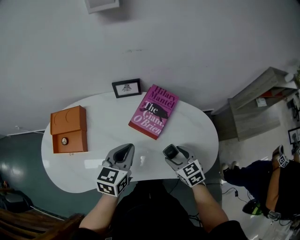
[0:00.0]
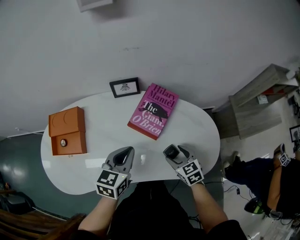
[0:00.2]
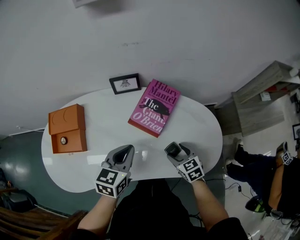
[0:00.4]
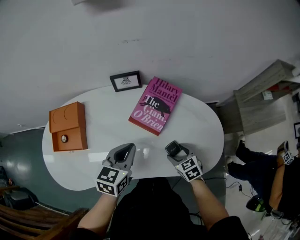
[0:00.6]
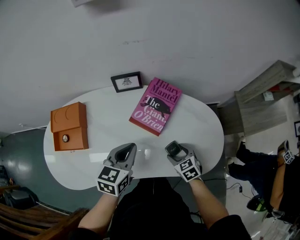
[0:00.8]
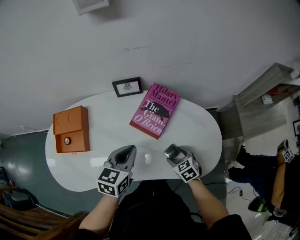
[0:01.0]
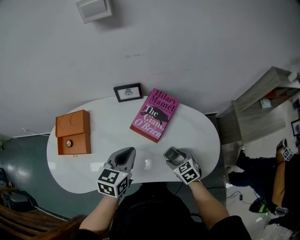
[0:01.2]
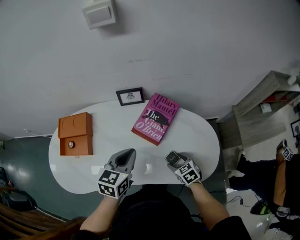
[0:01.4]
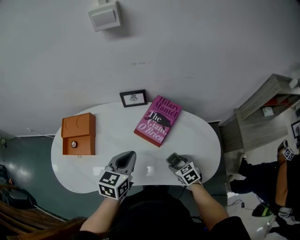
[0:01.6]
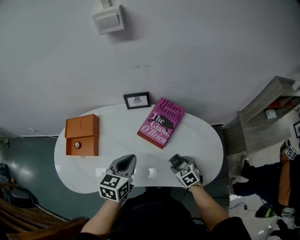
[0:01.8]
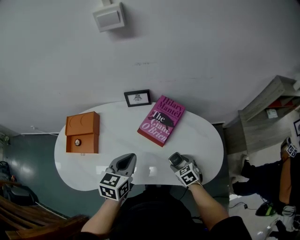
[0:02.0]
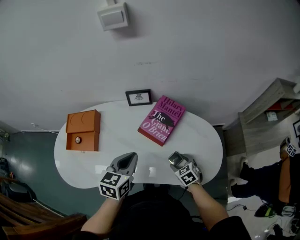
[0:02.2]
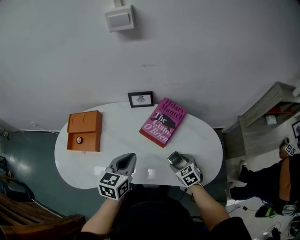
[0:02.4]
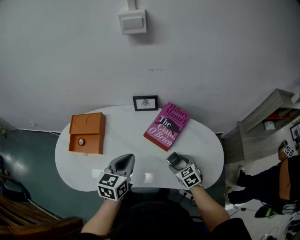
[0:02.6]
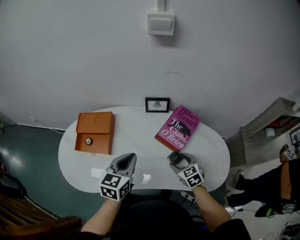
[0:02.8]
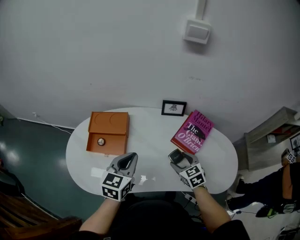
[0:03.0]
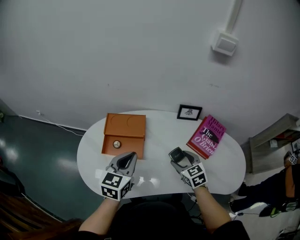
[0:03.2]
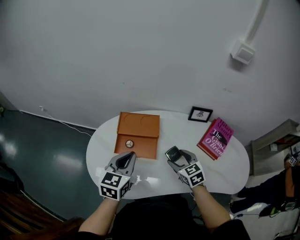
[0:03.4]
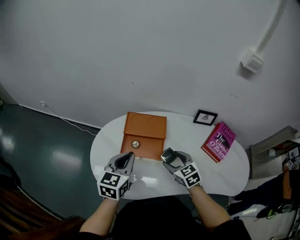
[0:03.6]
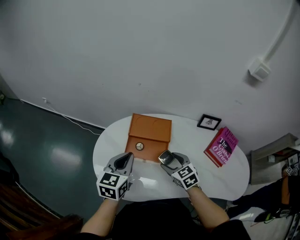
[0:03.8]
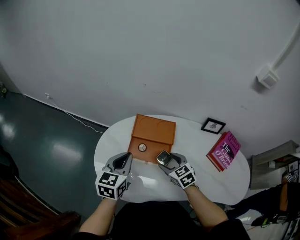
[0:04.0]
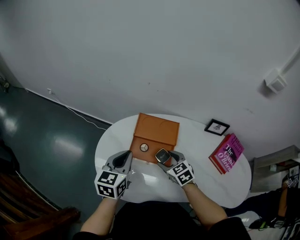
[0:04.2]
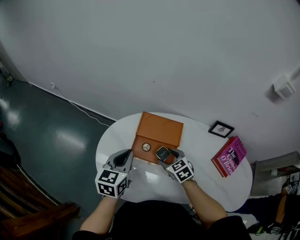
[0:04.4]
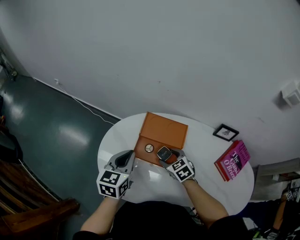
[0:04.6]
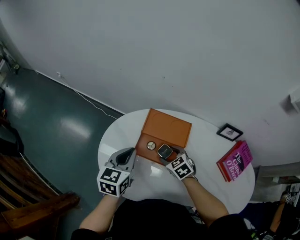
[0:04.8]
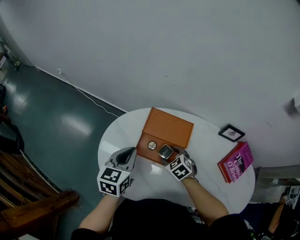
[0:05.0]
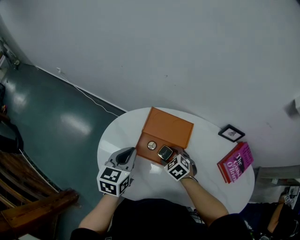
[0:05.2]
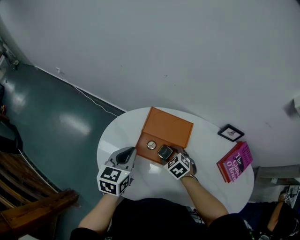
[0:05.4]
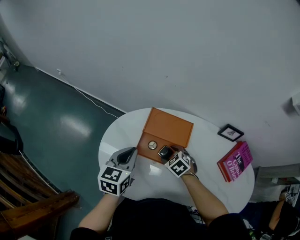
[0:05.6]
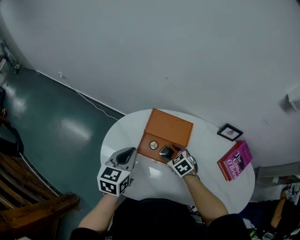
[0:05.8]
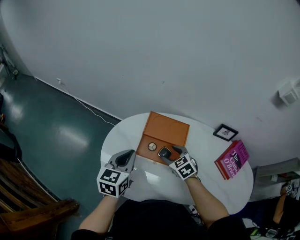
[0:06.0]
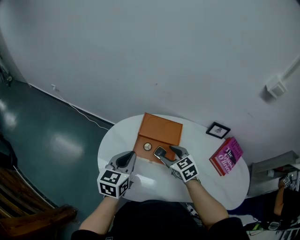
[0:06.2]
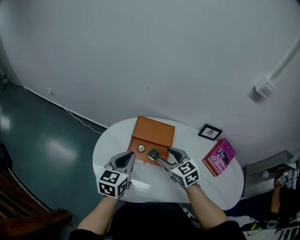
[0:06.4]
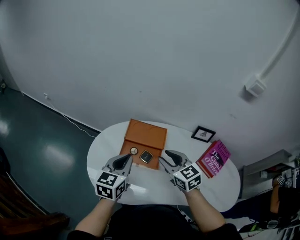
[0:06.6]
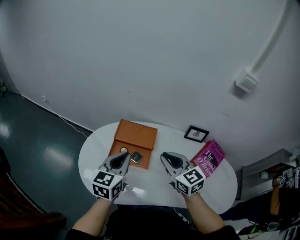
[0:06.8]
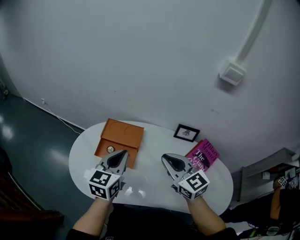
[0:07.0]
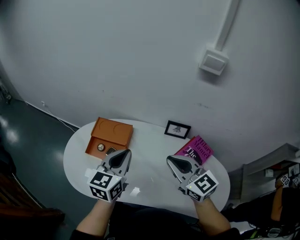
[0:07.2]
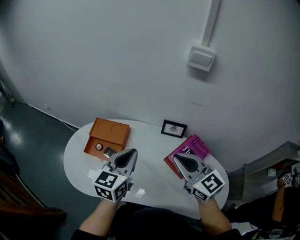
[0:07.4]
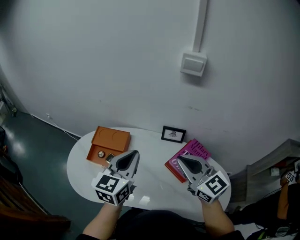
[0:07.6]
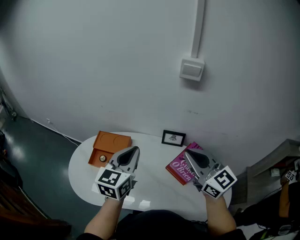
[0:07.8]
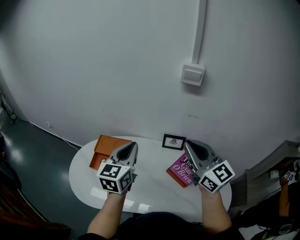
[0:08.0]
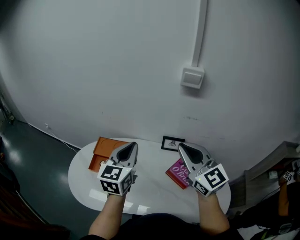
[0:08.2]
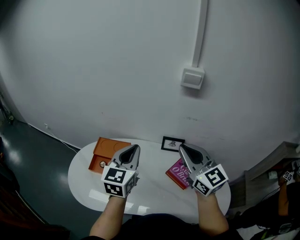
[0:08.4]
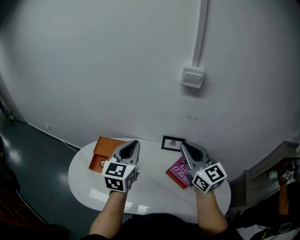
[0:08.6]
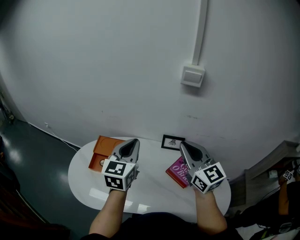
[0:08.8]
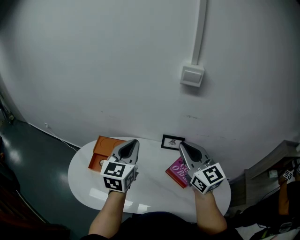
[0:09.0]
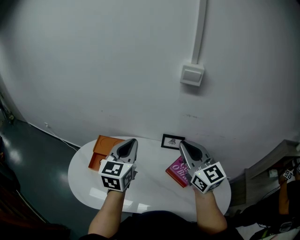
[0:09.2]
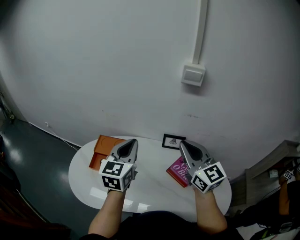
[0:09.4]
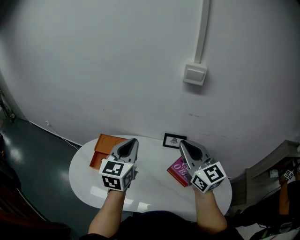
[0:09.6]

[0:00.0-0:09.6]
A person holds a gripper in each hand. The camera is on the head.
0:00.0 to 0:01.6: The right gripper goes approximately 10 cm downward.
0:01.6 to 0:03.2: The right gripper moves to the left and upward, roughly 30 cm. Meanwhile the left gripper moves to the left, approximately 30 cm.
0:03.2 to 0:04.8: Both grippers travel together to the left and forward, roughly 25 cm. The right gripper swivels roughly 30 degrees; the left gripper turns by some 20 degrees.
0:04.8 to 0:06.4: The right gripper heads upward, covering about 15 cm, and swivels approximately 20 degrees. Meanwhile the left gripper goes some 5 cm backward.
0:06.4 to 0:08.0: The grippers both shift to the right and upward by roughly 40 cm. The right gripper tips its fingers upward by about 40 degrees, and closes.
0:08.0 to 0:09.6: There are only small adjustments of the grippers.

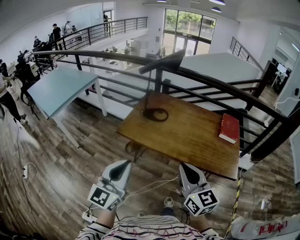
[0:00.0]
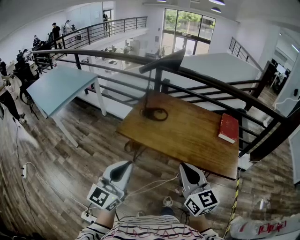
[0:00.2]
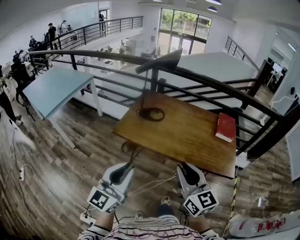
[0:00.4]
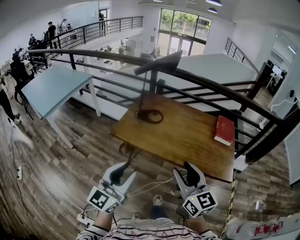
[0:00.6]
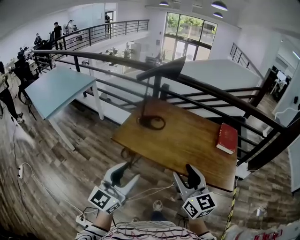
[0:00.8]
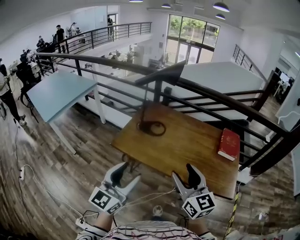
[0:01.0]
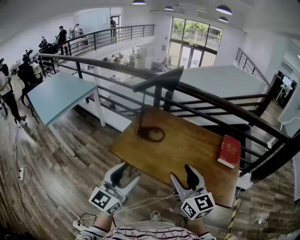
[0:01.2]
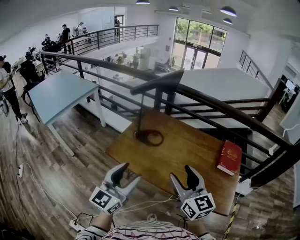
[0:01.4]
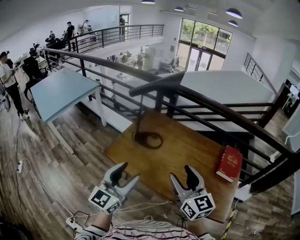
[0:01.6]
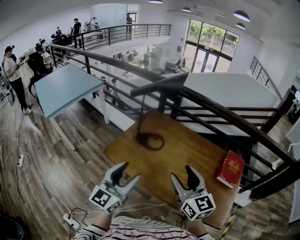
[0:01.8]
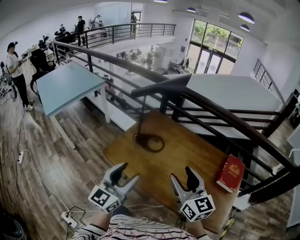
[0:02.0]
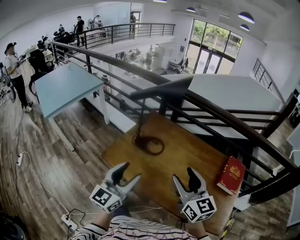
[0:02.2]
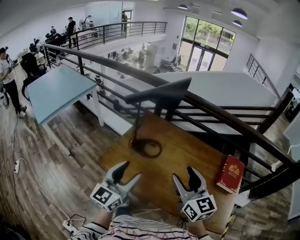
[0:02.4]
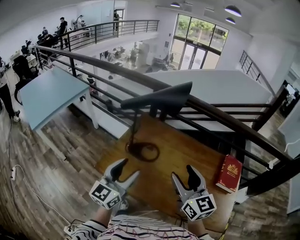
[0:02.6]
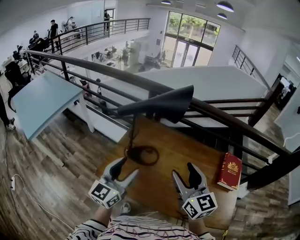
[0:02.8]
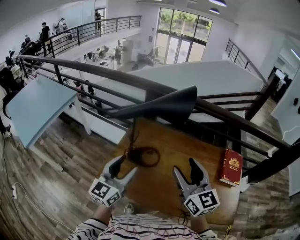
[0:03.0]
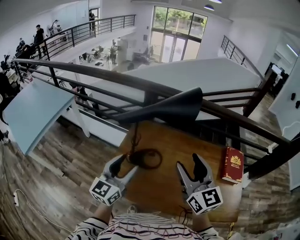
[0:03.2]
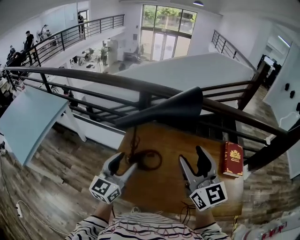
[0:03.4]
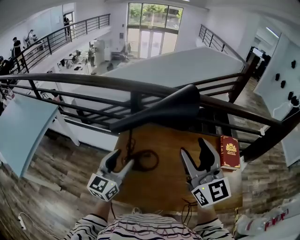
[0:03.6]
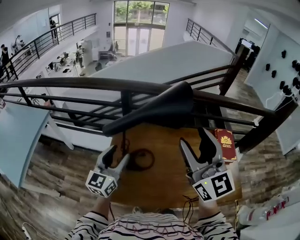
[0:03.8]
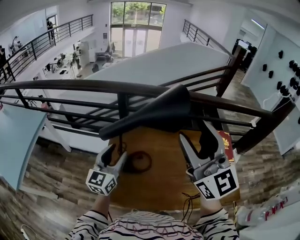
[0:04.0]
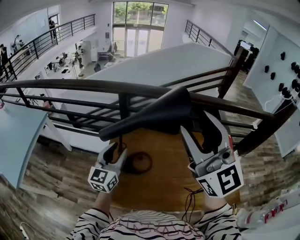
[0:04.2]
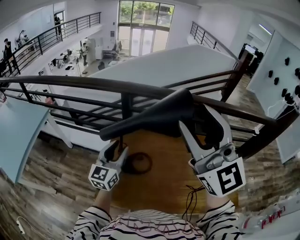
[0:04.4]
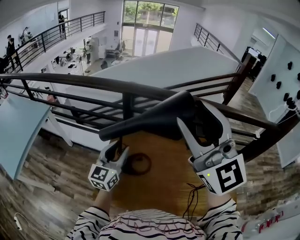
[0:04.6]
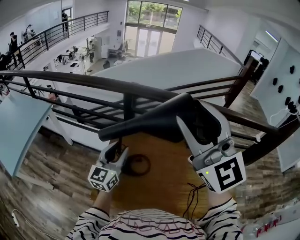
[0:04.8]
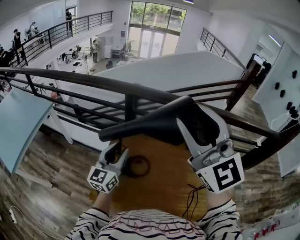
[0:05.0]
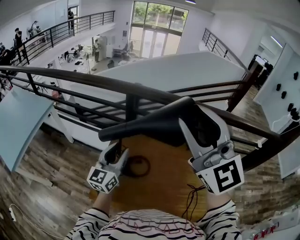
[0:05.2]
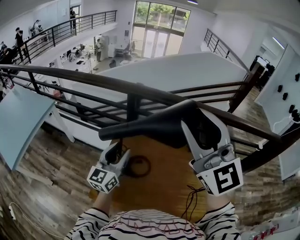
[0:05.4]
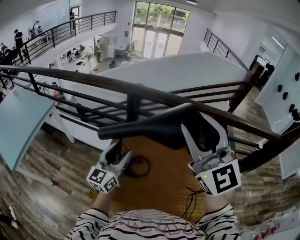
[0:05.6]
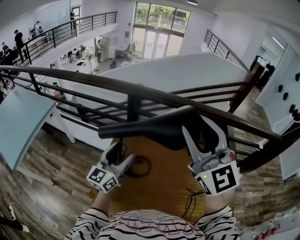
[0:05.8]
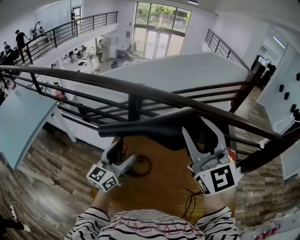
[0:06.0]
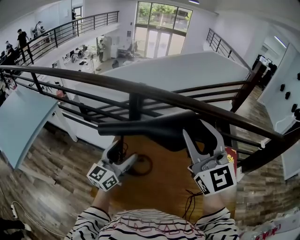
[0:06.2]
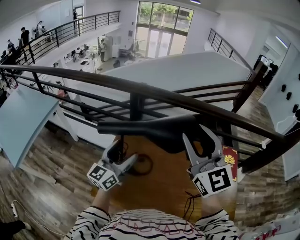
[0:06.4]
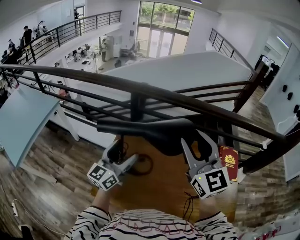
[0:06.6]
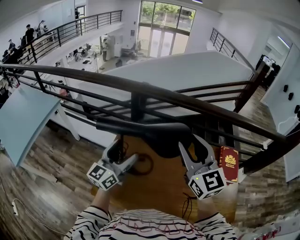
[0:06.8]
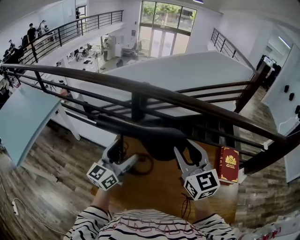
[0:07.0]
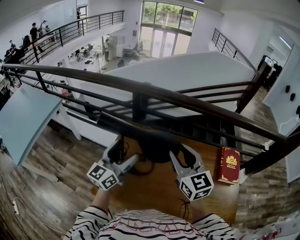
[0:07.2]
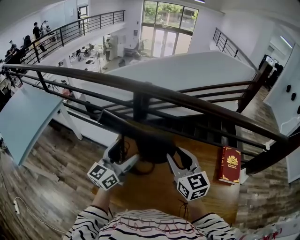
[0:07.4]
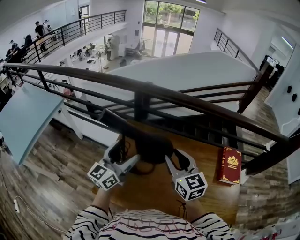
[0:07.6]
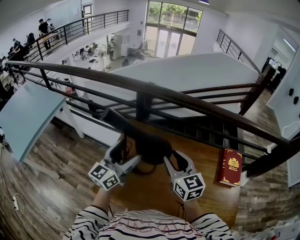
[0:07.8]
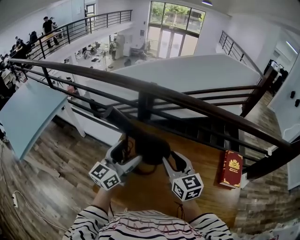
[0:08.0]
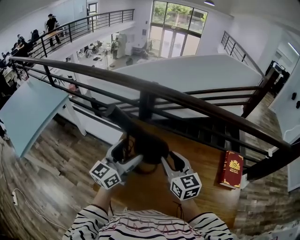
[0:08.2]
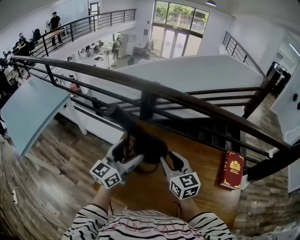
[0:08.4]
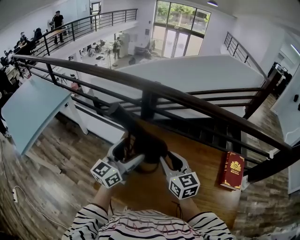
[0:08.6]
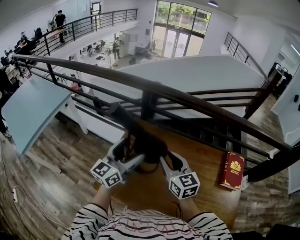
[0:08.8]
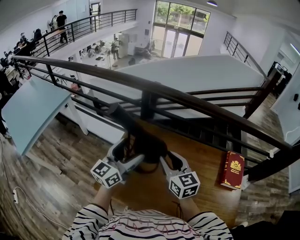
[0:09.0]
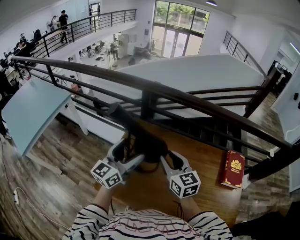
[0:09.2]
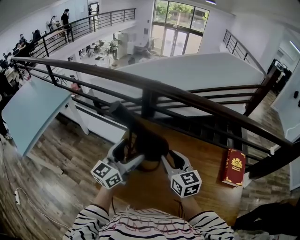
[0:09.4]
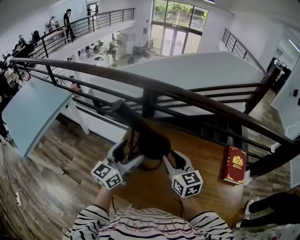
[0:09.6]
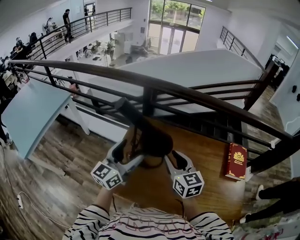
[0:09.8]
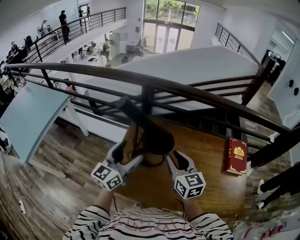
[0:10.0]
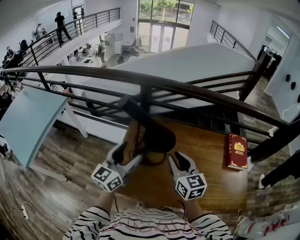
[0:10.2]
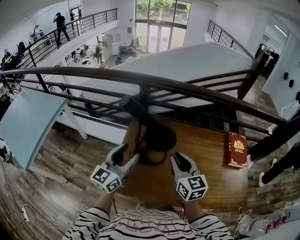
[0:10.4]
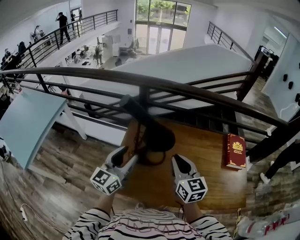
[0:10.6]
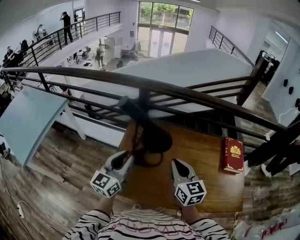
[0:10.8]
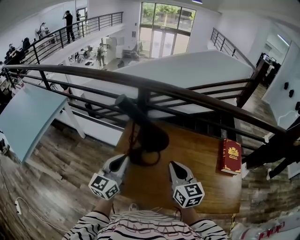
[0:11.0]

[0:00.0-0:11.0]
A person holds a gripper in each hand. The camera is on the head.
0:00.0 to 0:01.6: The right gripper goes approximately 25 cm forward, and opens up. The left gripper moves forward and to the right, about 25 cm, and opens up.
0:01.6 to 0:03.2: Both grippers move forward, roughly 25 cm.
0:03.2 to 0:04.8: The right gripper travels upward and forward by approximately 20 cm, and rotates some 30 degrees. The left gripper goes approximately 15 cm forward.
0:04.8 to 0:06.2: The right gripper goes some 5 cm downward; the left gripper opens up.
0:06.2 to 0:07.8: The right gripper travels downward by roughly 20 cm, and swivels about 30 degrees.
0:07.8 to 0:09.4: There are only small adjustments of the grippers.
0:09.4 to 0:11.0: Both grippers move backward, some 10 cm. The right gripper closes its fingers; the left gripper closes up.

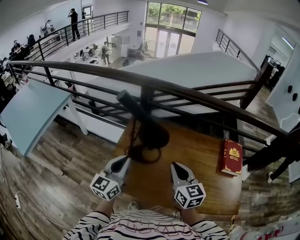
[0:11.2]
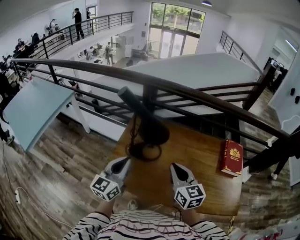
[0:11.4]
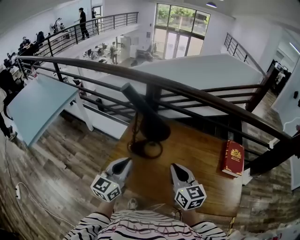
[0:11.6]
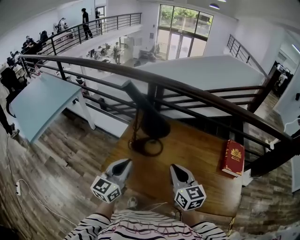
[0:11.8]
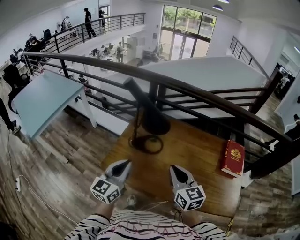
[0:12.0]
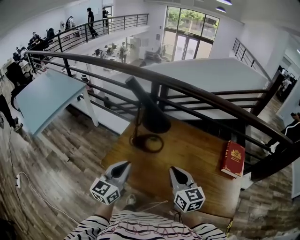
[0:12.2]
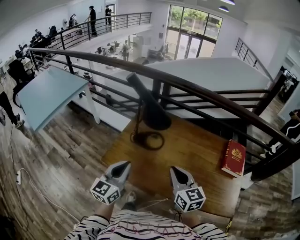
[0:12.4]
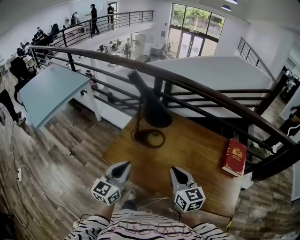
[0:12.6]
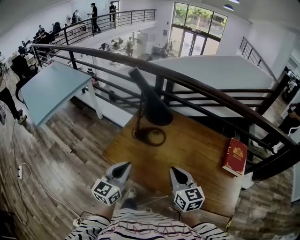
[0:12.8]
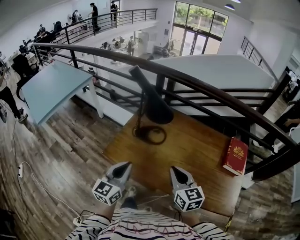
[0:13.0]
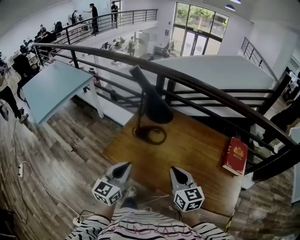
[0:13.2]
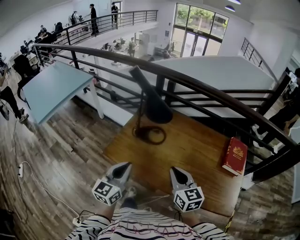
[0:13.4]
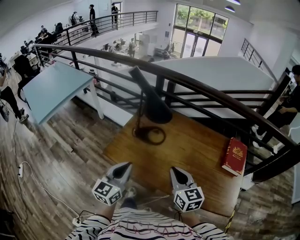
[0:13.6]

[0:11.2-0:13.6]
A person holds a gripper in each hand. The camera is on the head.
0:11.2 to 0:12.4: Both grippers move backward, some 15 cm.
0:12.4 to 0:13.6: The grippers move only a little.

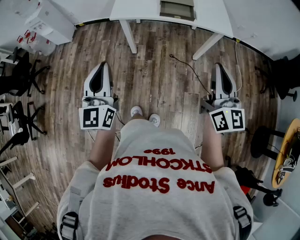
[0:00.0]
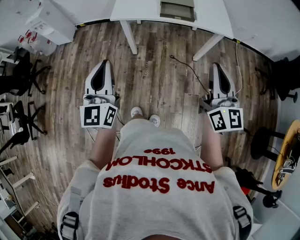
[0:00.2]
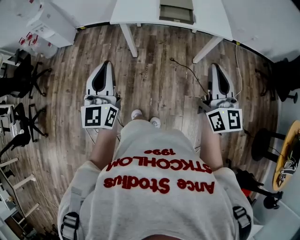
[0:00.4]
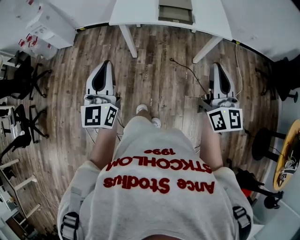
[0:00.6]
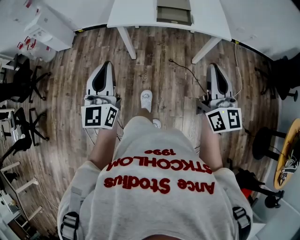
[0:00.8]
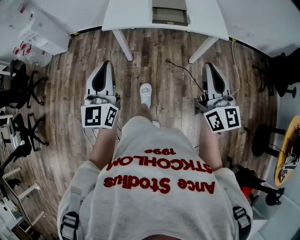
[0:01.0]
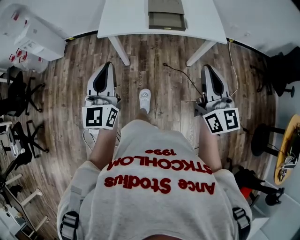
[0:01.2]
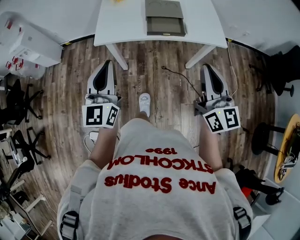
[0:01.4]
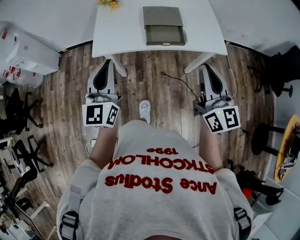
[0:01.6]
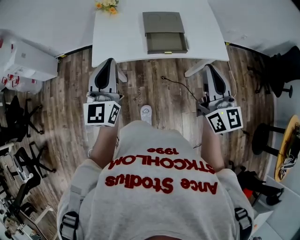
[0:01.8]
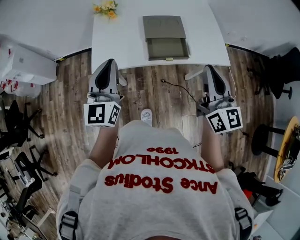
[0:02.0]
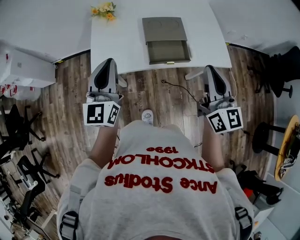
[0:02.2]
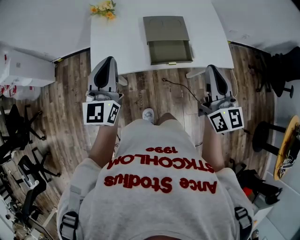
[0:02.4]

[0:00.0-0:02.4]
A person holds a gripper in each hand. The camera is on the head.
0:00.0 to 0:01.2: The left gripper goes about 10 cm forward; the right gripper moves forward, roughly 5 cm.
0:01.2 to 0:02.4: The grippers both shift forward by approximately 25 cm.
